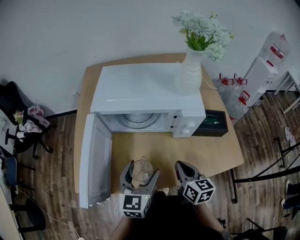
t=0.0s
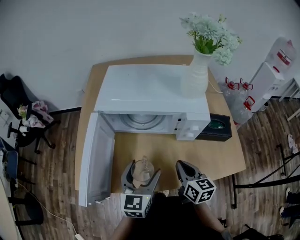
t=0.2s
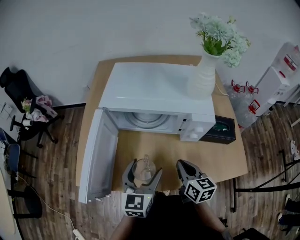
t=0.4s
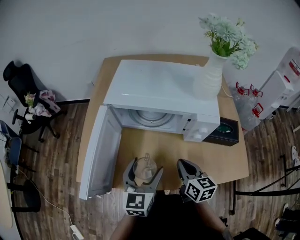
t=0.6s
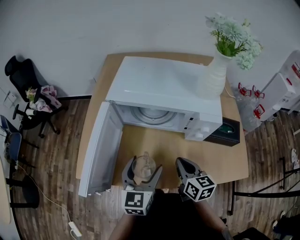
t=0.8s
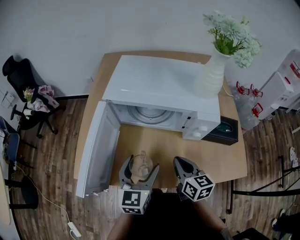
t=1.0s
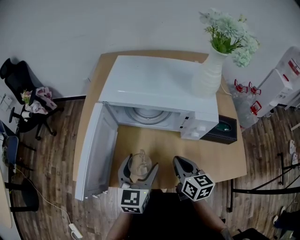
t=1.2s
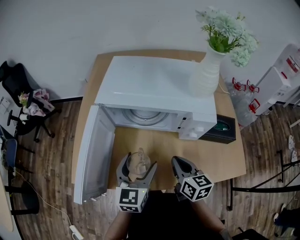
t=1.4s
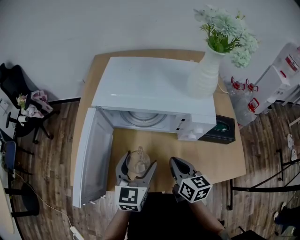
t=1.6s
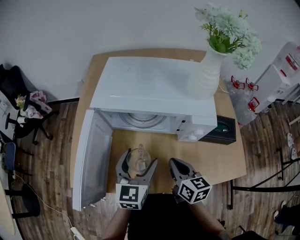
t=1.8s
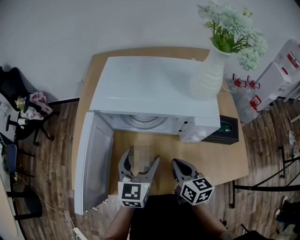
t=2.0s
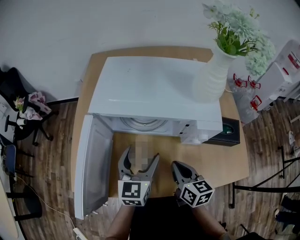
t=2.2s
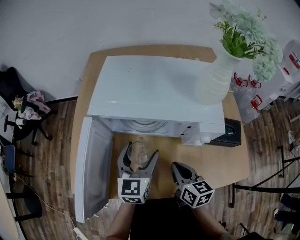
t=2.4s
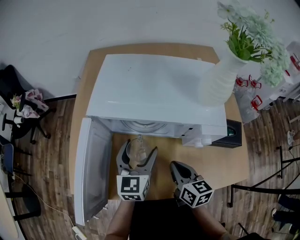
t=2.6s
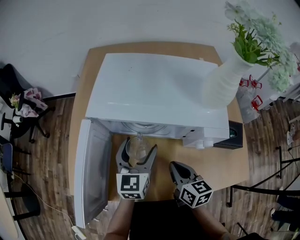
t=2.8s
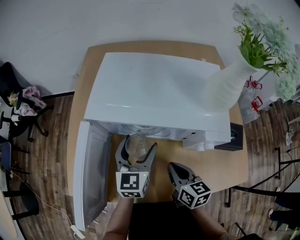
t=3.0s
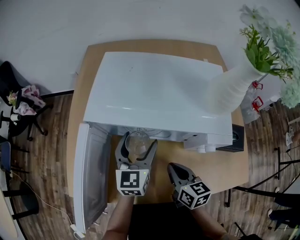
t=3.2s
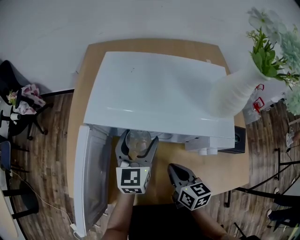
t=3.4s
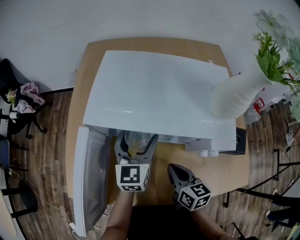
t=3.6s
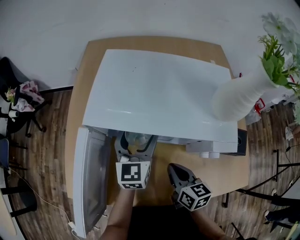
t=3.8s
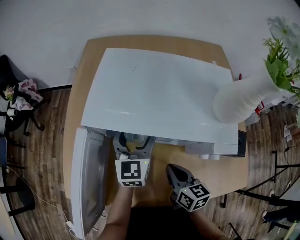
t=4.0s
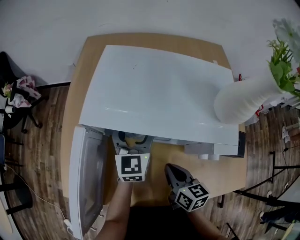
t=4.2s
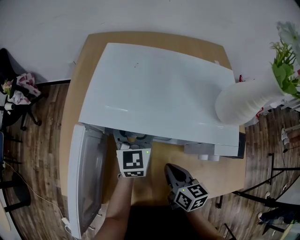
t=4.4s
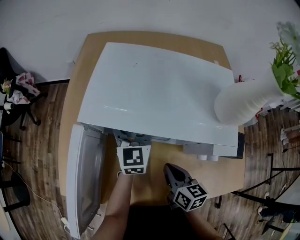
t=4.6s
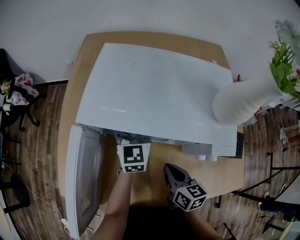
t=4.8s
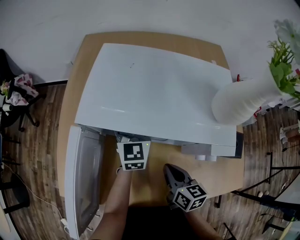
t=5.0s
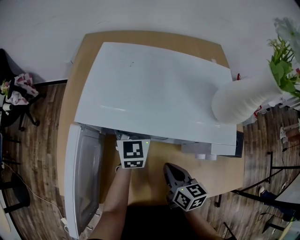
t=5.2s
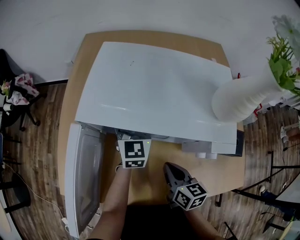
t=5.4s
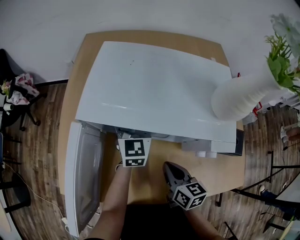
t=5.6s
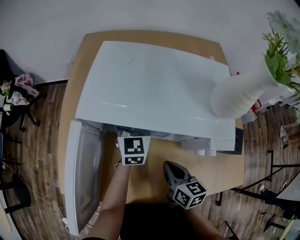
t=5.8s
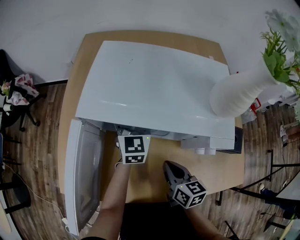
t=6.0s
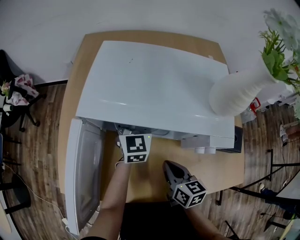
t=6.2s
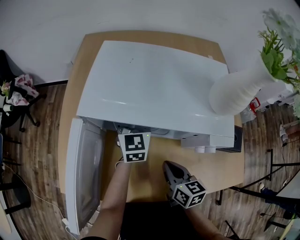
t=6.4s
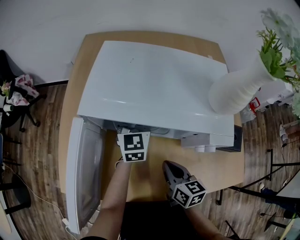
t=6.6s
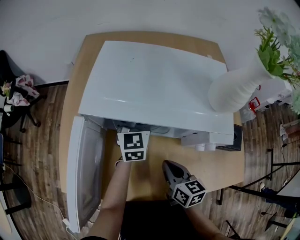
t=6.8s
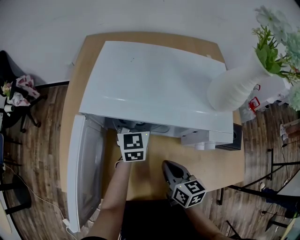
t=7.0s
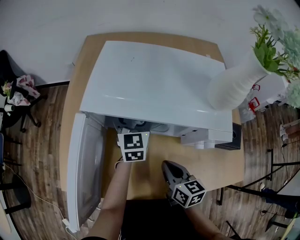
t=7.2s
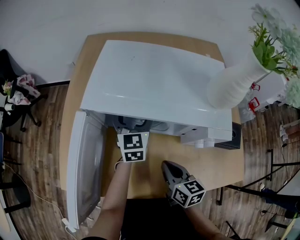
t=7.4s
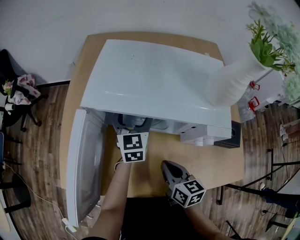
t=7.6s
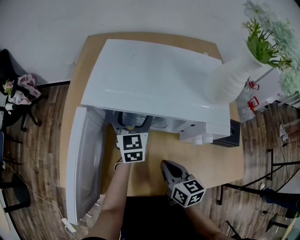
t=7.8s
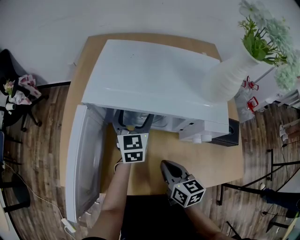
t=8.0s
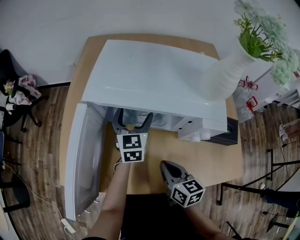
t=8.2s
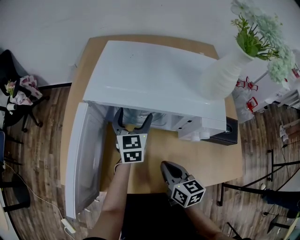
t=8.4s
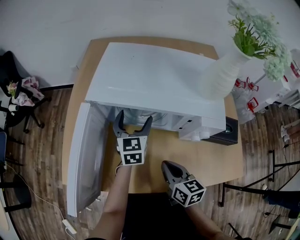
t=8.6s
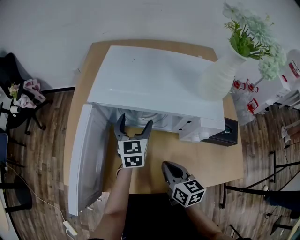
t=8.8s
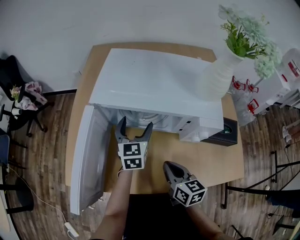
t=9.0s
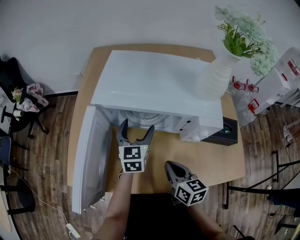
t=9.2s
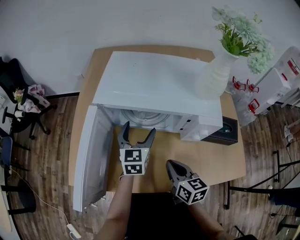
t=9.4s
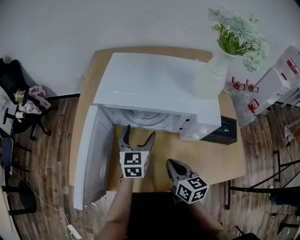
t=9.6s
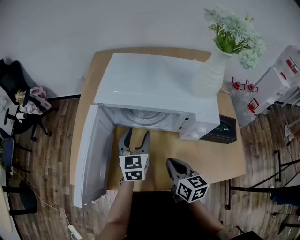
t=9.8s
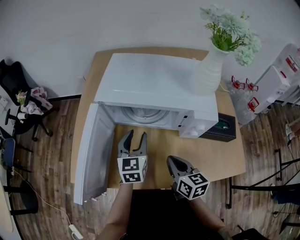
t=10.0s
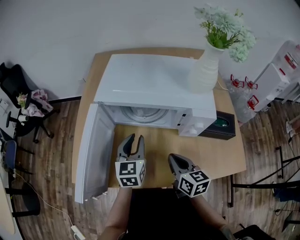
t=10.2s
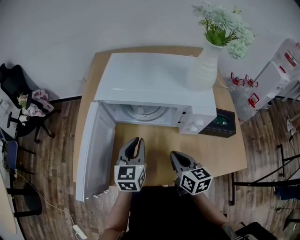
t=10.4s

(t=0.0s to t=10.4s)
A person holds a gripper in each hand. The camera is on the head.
t=0.0s - t=1.4s: There are only small adjustments of the grippers.
t=1.4s - t=3.0s: The left gripper is displaced forward by about 15 cm, while the right gripper ends up roughly 5 cm from where it was.
t=3.0s - t=4.4s: The left gripper shifts some 10 cm forward.
t=4.4s - t=7.4s: The grippers stay close to where they were, moving slightly.
t=7.4s - t=9.0s: The left gripper heads backward, covering about 5 cm.
t=9.0s - t=10.4s: The left gripper is displaced backward by approximately 10 cm, and closes its fingers.

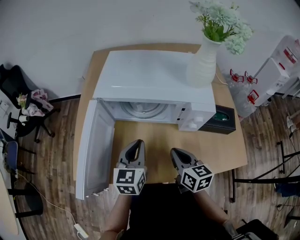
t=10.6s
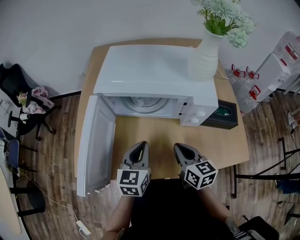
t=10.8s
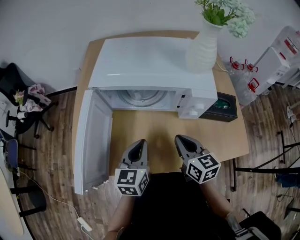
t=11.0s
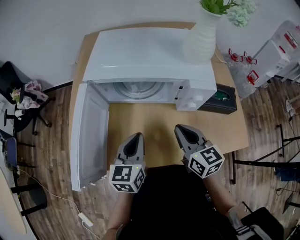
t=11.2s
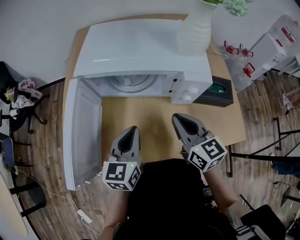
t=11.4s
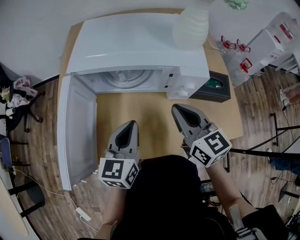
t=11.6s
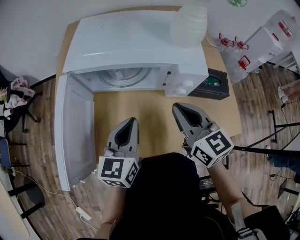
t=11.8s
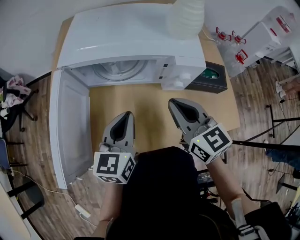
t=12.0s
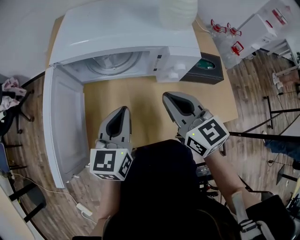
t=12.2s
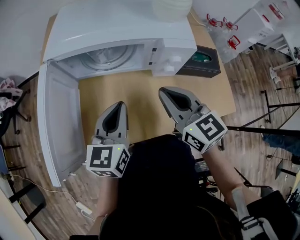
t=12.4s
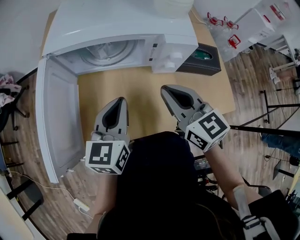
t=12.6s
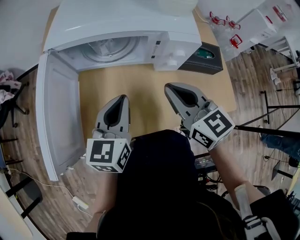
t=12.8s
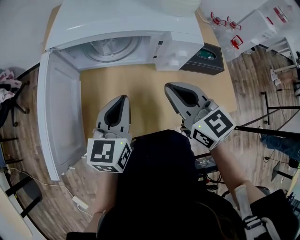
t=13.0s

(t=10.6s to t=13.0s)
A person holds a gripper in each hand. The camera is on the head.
t=10.6s - t=11.8s: The right gripper goes roughly 10 cm upward.
t=11.8s - t=13.0s: The grippers move only a little.

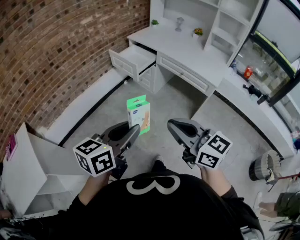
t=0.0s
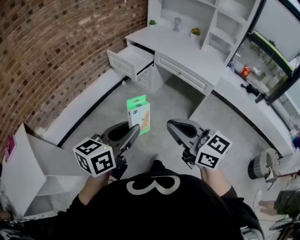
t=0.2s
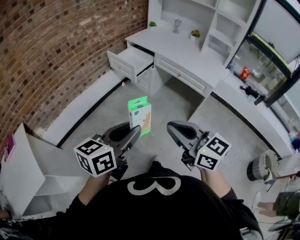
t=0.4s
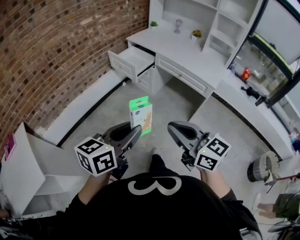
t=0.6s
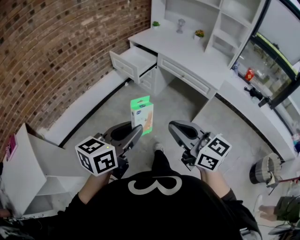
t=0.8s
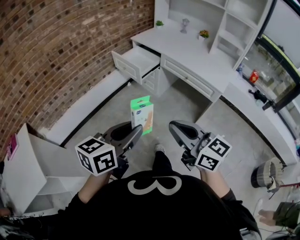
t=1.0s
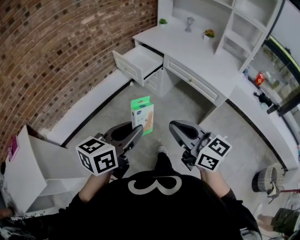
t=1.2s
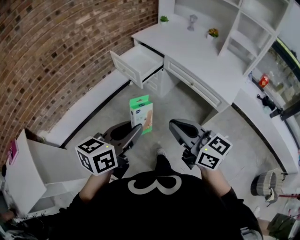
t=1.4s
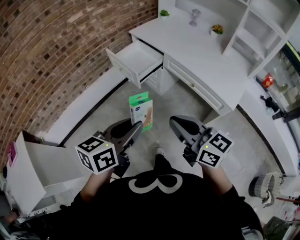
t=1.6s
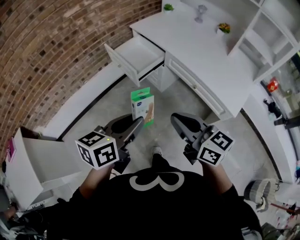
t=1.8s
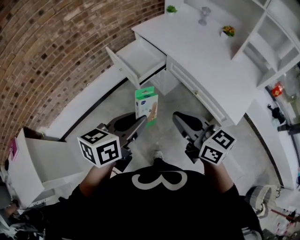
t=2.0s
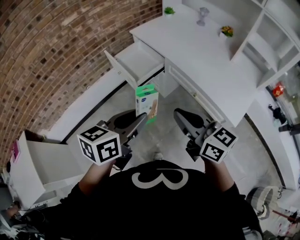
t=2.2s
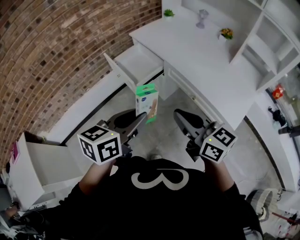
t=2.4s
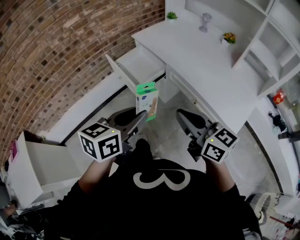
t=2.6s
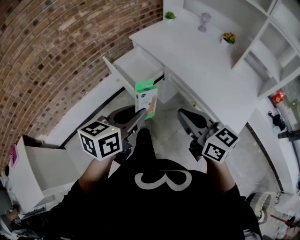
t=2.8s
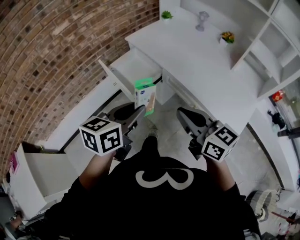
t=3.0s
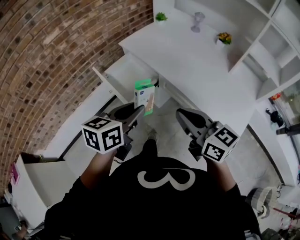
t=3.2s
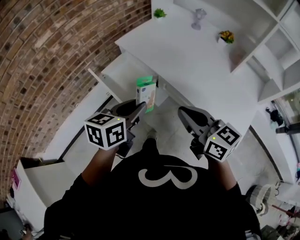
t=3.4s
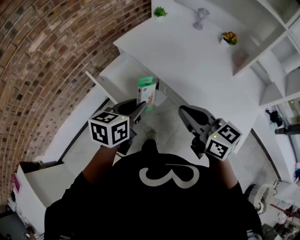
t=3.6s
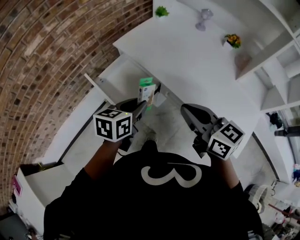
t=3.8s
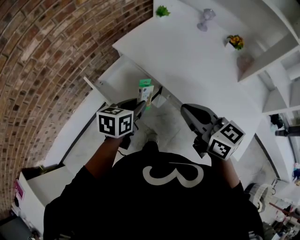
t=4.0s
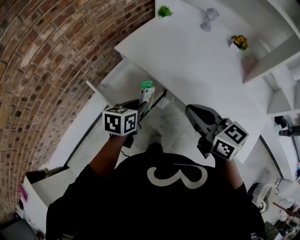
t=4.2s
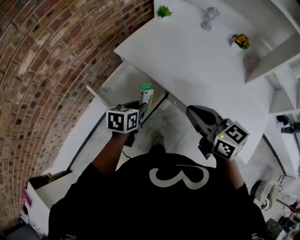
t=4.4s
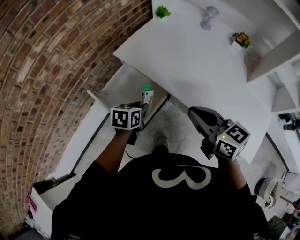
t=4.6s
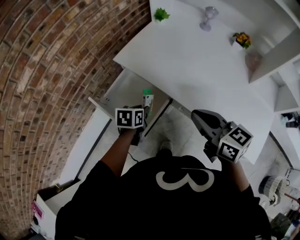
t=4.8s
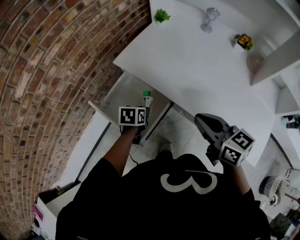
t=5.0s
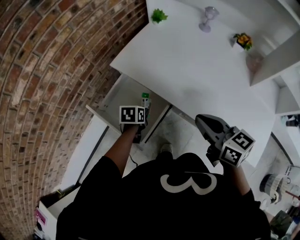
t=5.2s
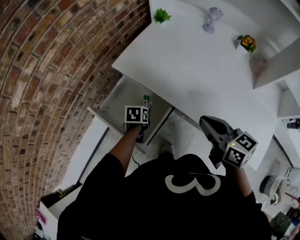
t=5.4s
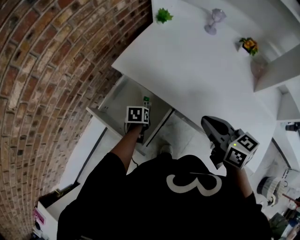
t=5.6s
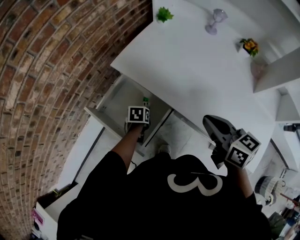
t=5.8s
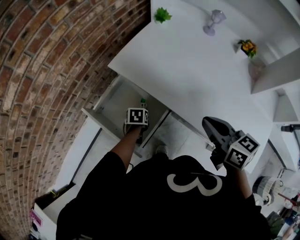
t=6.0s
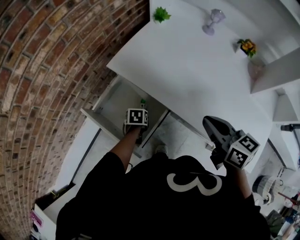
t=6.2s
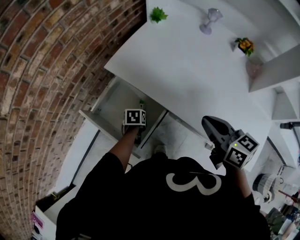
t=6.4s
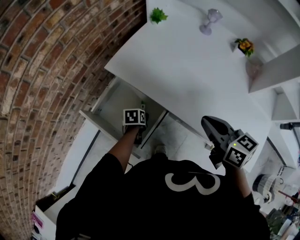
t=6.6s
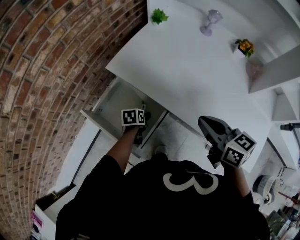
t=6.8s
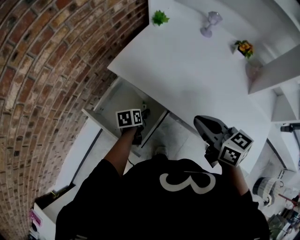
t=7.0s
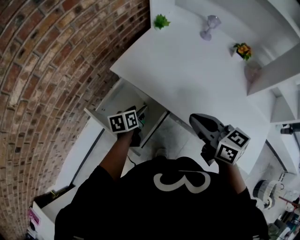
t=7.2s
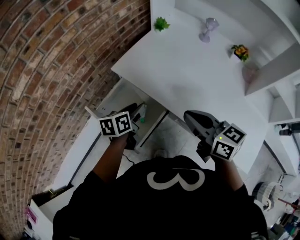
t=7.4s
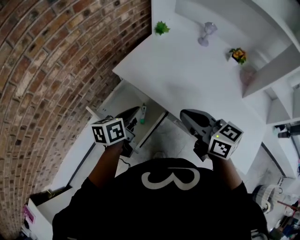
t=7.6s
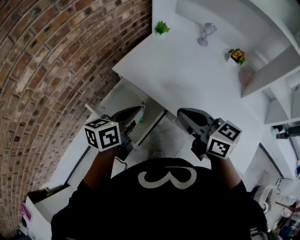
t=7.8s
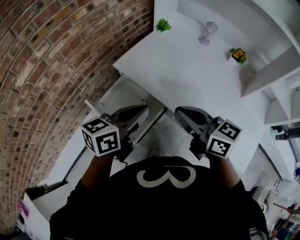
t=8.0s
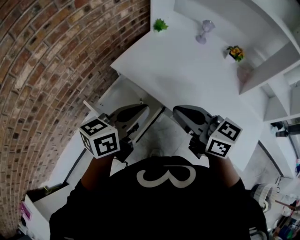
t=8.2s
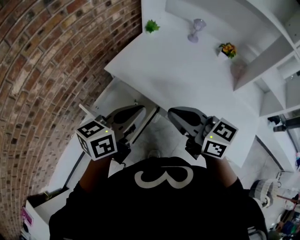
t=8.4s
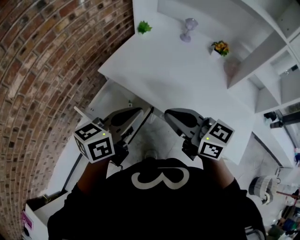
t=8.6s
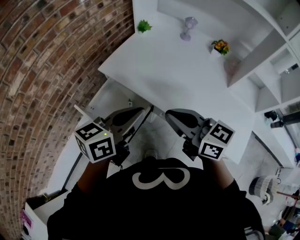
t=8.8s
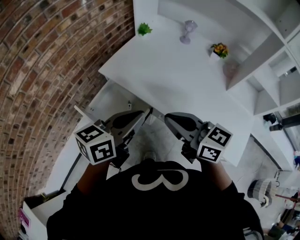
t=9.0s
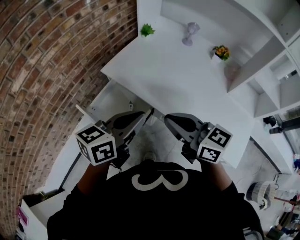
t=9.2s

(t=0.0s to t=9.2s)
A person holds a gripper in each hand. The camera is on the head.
t=0.0s - t=1.6s: Both grippers travel together forward, about 25 cm.
t=1.6s - t=3.0s: The left gripper moves forward, approximately 20 cm. The right gripper shifts some 20 cm forward and to the right.
t=3.0s - t=4.6s: The right gripper goes roughly 25 cm forward; the left gripper goes roughly 35 cm forward and downward, and turns by some 30 degrees.
t=4.6s - t=6.2s: The left gripper moves downward, about 20 cm, and changes its angle by about 20 degrees; the right gripper moves forward, about 5 cm.
t=6.2s - t=7.6s: The left gripper is displaced upward by about 30 cm, tips its fingers upward by roughly 40 degrees, and opens, then closes once more. Meanwhile the right gripper goes approximately 10 cm to the left and upward.
t=7.6s - t=9.2s: The left gripper goes approximately 20 cm upward, backward and to the right, and changes its angle by about 30 degrees. The right gripper moves backward, some 5 cm.

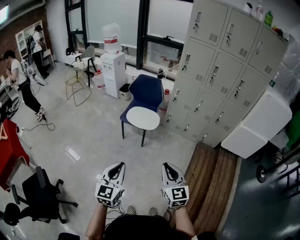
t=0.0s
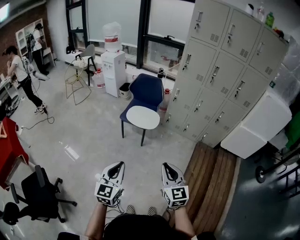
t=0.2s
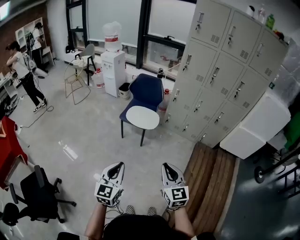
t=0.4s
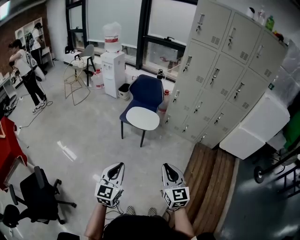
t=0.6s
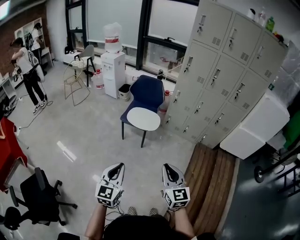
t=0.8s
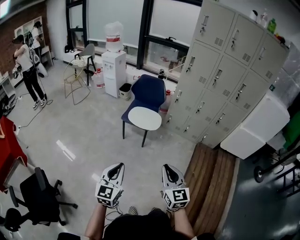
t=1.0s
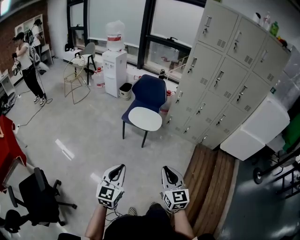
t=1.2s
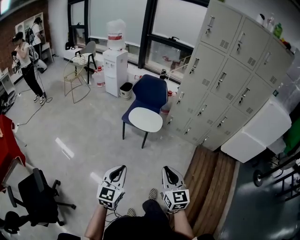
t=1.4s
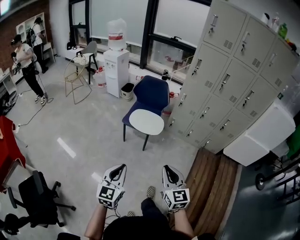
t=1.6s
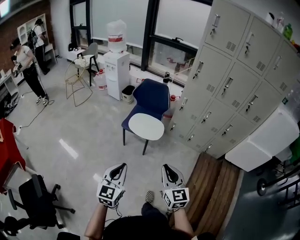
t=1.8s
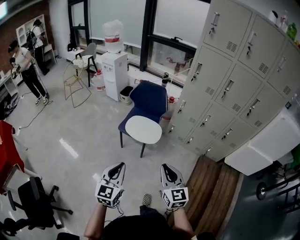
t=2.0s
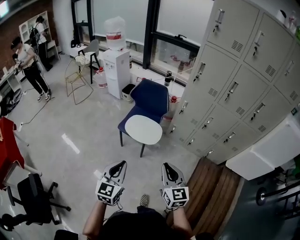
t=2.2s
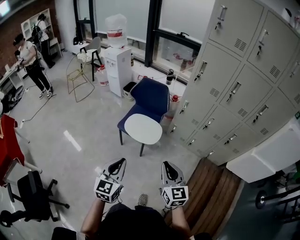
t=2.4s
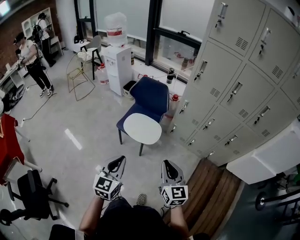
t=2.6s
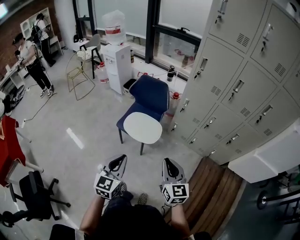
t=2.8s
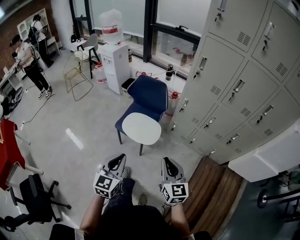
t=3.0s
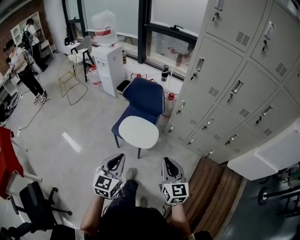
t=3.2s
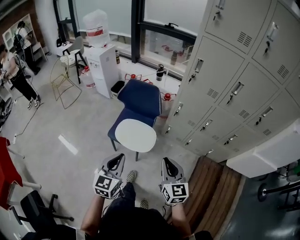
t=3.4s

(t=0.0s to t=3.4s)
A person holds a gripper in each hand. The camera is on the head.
t=0.0s - t=1.6s: The two grippers go about 10 cm forward and to the left.
t=1.6s - t=3.4s: The two grippers travel together, forward, approximately 40 cm.
